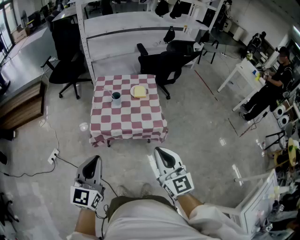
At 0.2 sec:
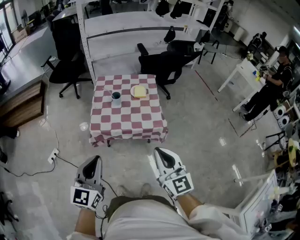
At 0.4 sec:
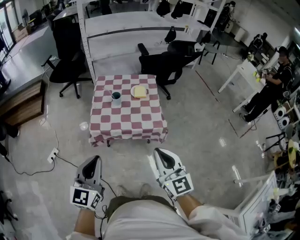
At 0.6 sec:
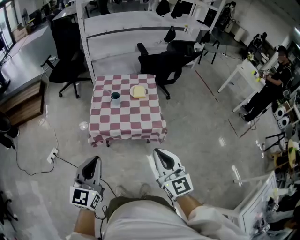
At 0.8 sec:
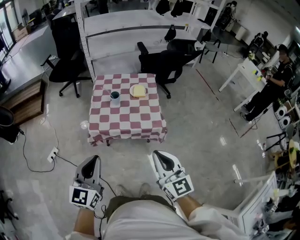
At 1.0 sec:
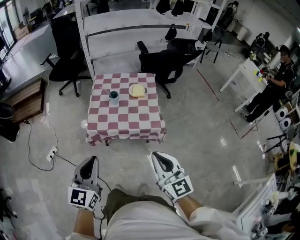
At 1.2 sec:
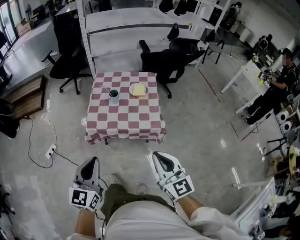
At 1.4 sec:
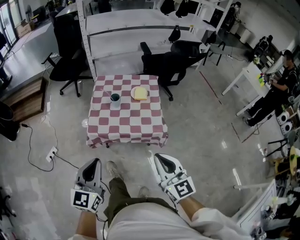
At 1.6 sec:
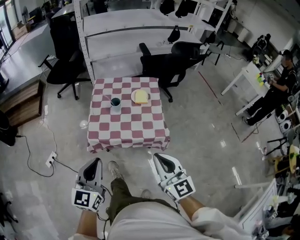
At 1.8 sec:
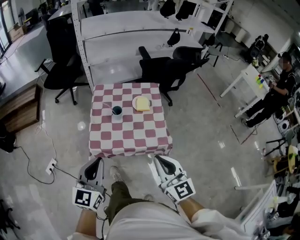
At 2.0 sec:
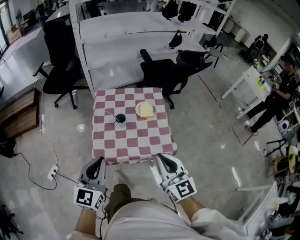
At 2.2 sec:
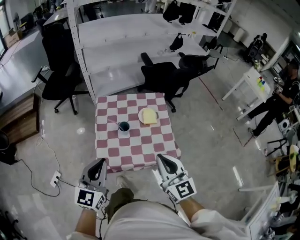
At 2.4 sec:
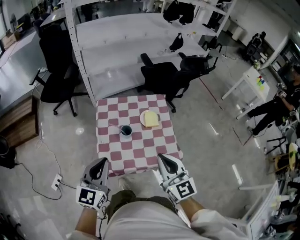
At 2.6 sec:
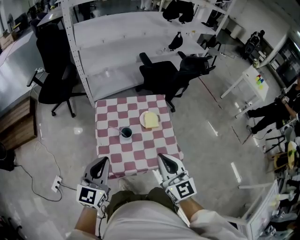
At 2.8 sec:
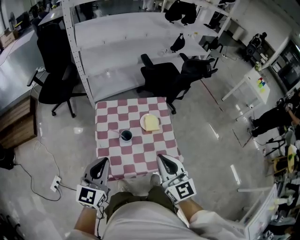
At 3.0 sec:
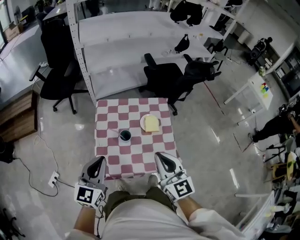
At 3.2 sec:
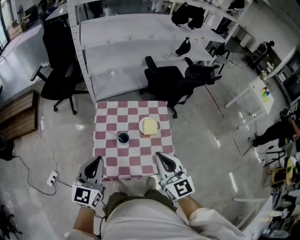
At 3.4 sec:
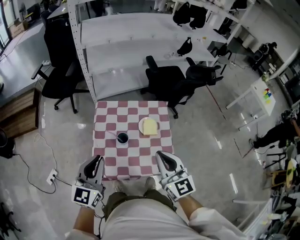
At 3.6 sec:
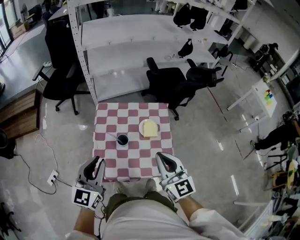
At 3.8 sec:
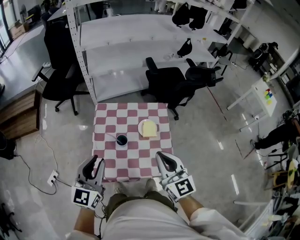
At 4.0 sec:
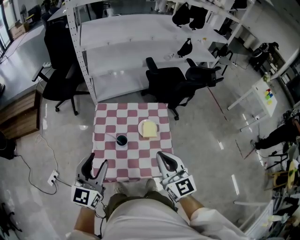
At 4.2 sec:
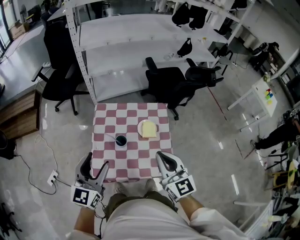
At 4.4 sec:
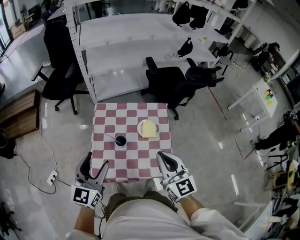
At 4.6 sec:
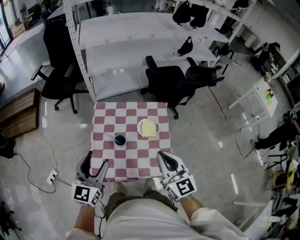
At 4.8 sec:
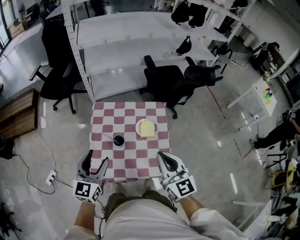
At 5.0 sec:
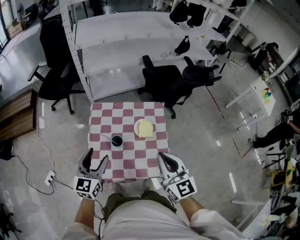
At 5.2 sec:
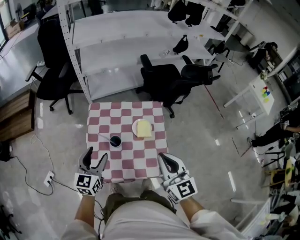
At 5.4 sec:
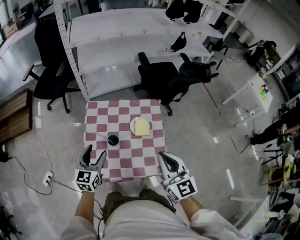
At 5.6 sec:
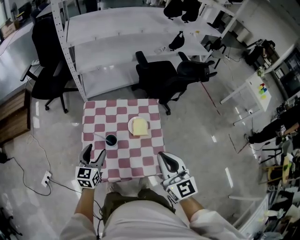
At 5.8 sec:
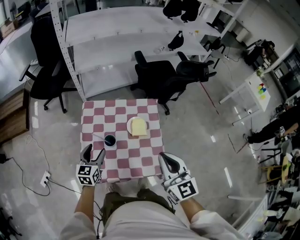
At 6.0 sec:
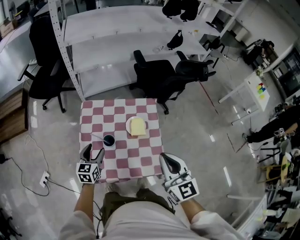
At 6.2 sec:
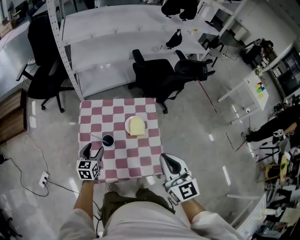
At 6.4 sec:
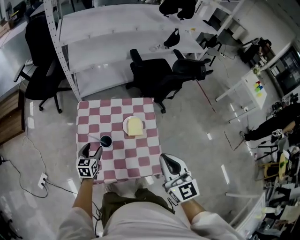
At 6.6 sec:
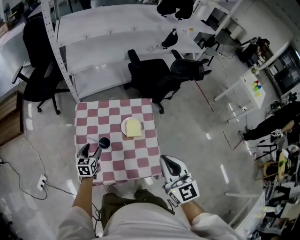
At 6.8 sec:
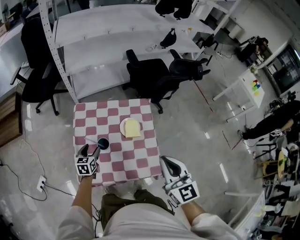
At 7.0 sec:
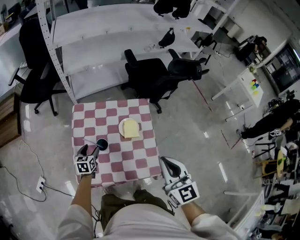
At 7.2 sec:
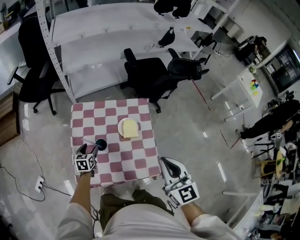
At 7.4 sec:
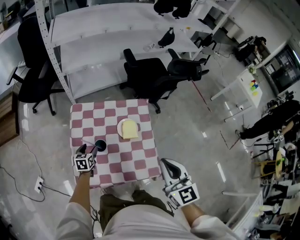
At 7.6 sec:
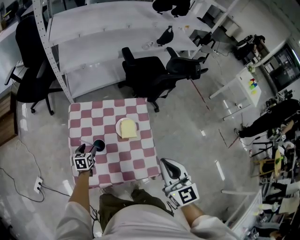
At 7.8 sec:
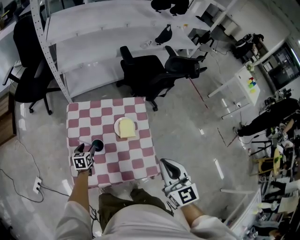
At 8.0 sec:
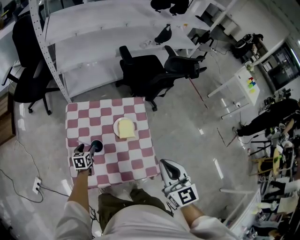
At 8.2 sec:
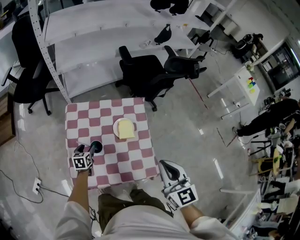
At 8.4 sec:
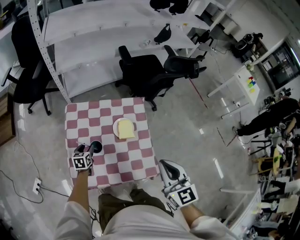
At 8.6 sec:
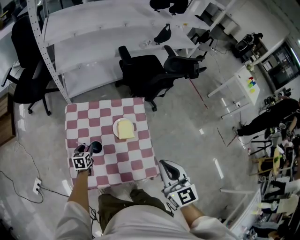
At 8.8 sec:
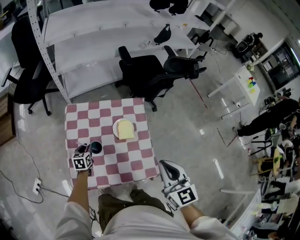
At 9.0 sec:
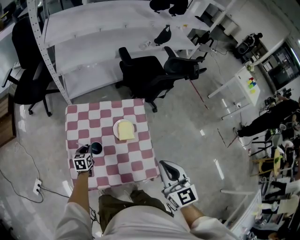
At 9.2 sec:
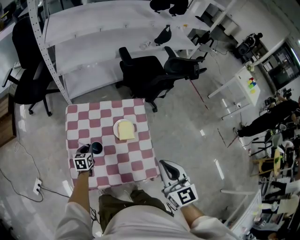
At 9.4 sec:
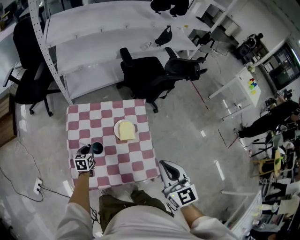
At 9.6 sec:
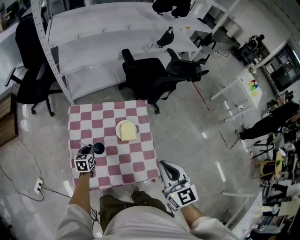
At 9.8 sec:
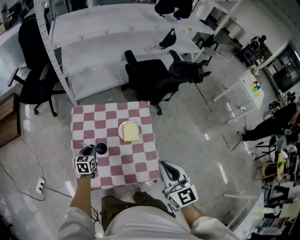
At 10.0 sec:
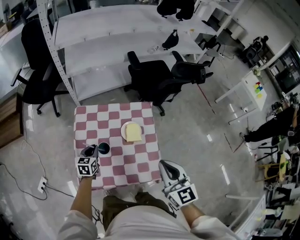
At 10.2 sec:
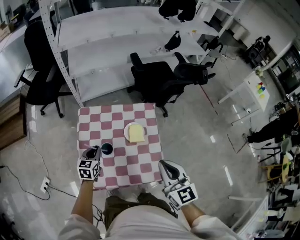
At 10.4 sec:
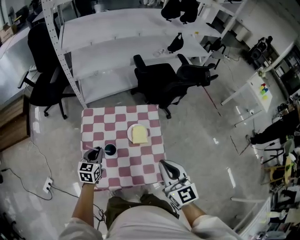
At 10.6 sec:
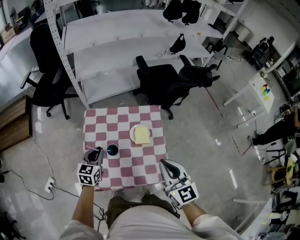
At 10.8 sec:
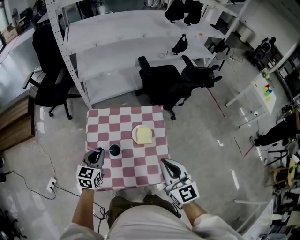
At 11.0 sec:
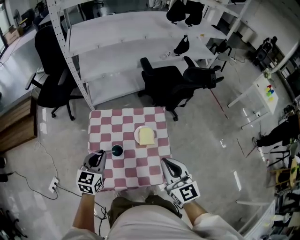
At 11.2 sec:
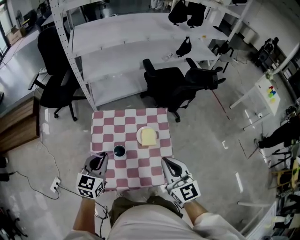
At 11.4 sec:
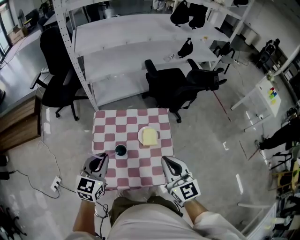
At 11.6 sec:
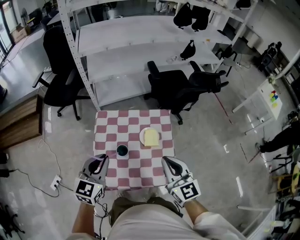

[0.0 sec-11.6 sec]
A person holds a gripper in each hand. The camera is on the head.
0.0 sec to 1.4 sec: The left gripper changes place by approximately 5 cm. Meanwhile the right gripper changes place by about 5 cm.
1.4 sec to 2.8 sec: The two grippers go roughly 30 cm forward.
2.8 sec to 4.4 sec: The left gripper opens its fingers. Meanwhile the right gripper travels to the right and forward by some 10 cm.
4.4 sec to 5.8 sec: The left gripper heads downward and forward, covering about 20 cm.
5.8 sec to 7.2 sec: The left gripper is displaced downward by about 15 cm.
7.2 sec to 8.8 sec: The left gripper closes up.
8.8 sec to 10.2 sec: The left gripper is displaced upward by about 10 cm.
10.2 sec to 11.6 sec: The left gripper shifts roughly 20 cm upward.

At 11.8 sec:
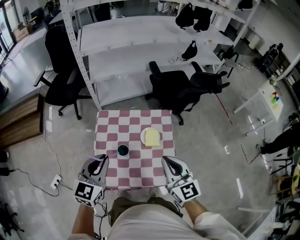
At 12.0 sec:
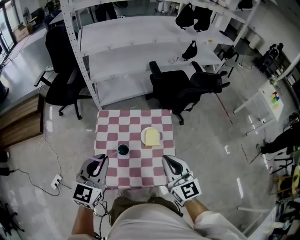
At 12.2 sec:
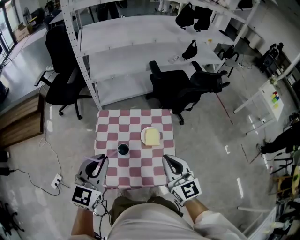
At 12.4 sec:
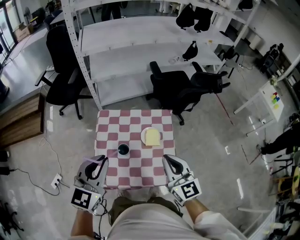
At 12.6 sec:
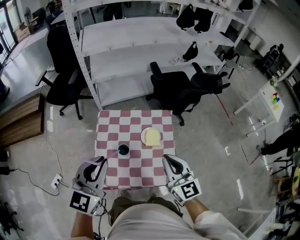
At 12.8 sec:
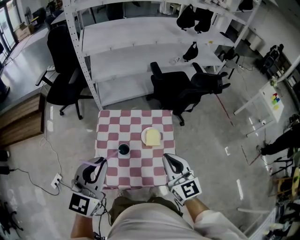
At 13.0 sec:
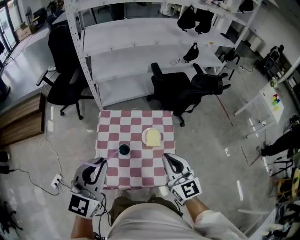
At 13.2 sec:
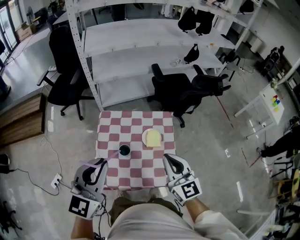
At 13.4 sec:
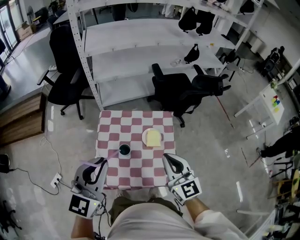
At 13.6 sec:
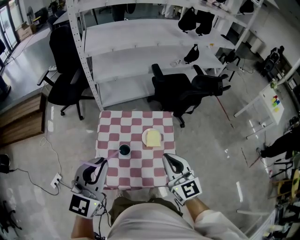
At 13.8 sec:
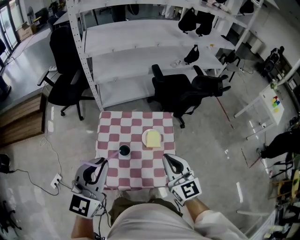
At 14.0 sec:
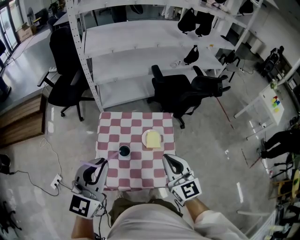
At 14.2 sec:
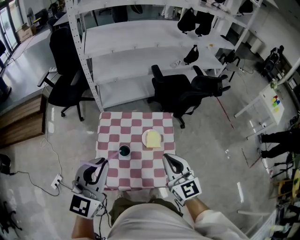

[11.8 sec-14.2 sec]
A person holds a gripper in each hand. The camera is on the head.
11.8 sec to 13.0 sec: The left gripper goes some 10 cm upward.
13.0 sec to 14.2 sec: Both grippers stay put.

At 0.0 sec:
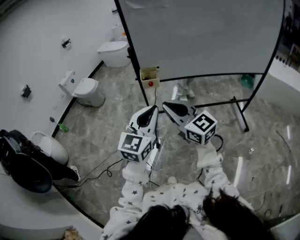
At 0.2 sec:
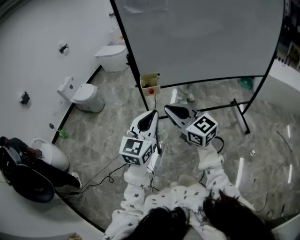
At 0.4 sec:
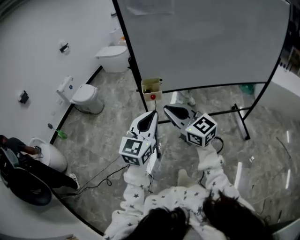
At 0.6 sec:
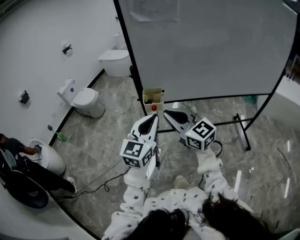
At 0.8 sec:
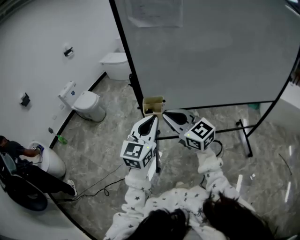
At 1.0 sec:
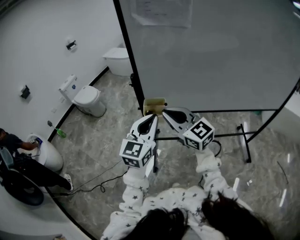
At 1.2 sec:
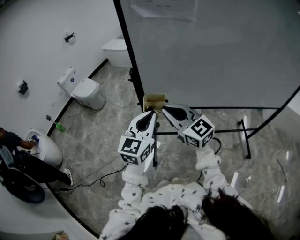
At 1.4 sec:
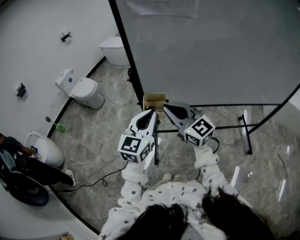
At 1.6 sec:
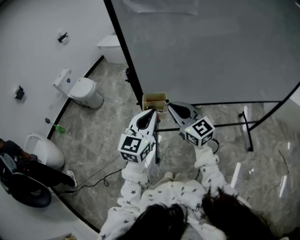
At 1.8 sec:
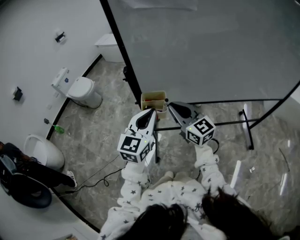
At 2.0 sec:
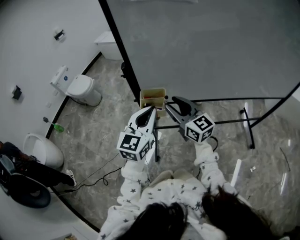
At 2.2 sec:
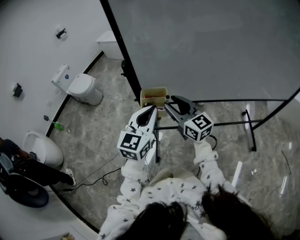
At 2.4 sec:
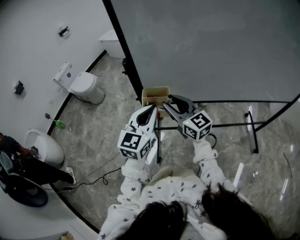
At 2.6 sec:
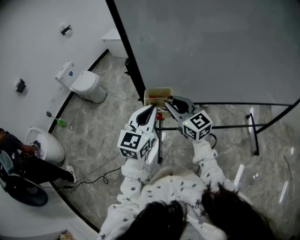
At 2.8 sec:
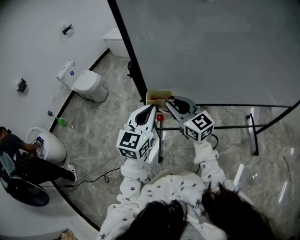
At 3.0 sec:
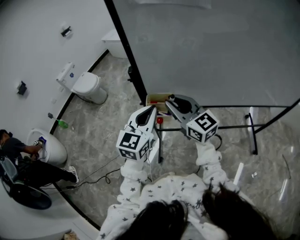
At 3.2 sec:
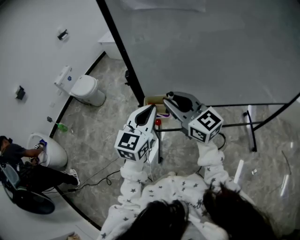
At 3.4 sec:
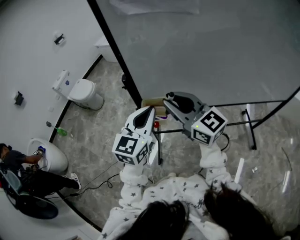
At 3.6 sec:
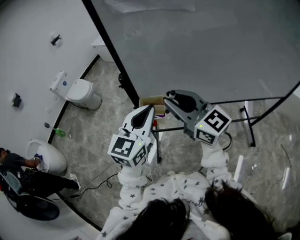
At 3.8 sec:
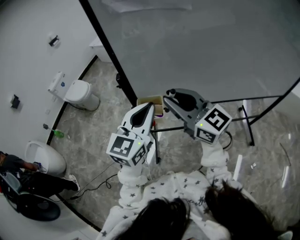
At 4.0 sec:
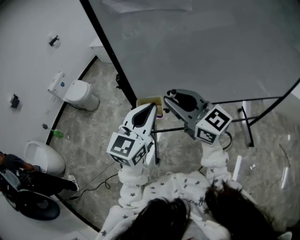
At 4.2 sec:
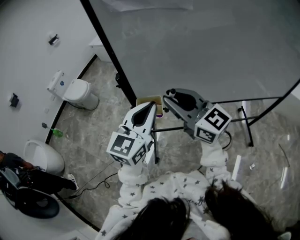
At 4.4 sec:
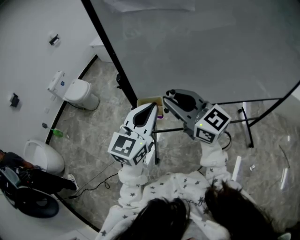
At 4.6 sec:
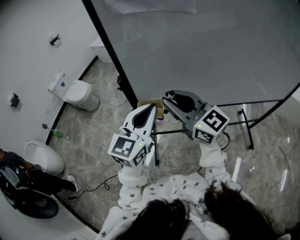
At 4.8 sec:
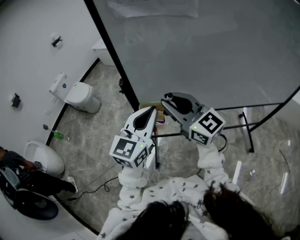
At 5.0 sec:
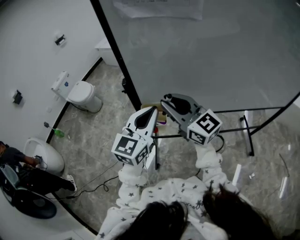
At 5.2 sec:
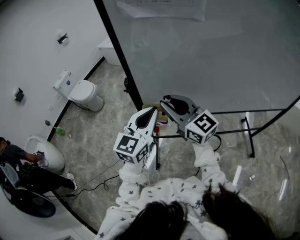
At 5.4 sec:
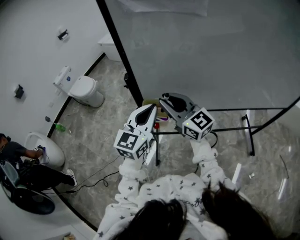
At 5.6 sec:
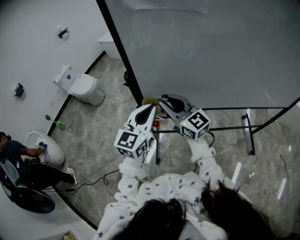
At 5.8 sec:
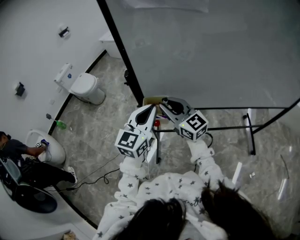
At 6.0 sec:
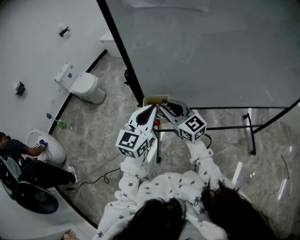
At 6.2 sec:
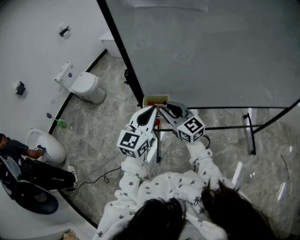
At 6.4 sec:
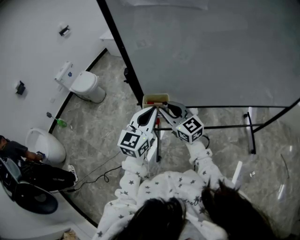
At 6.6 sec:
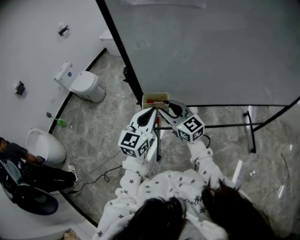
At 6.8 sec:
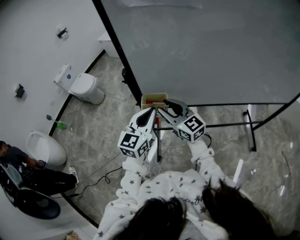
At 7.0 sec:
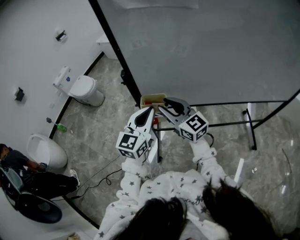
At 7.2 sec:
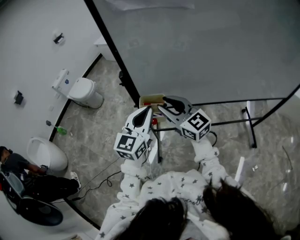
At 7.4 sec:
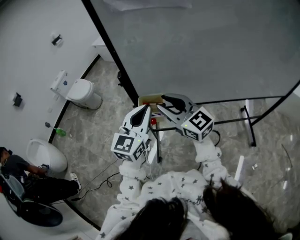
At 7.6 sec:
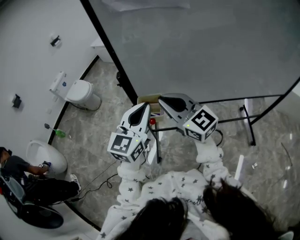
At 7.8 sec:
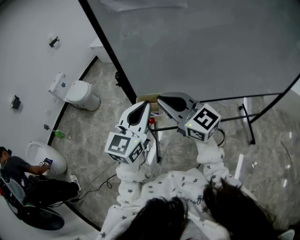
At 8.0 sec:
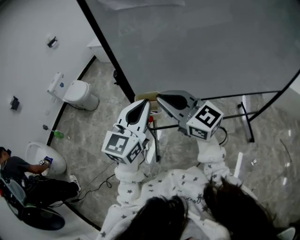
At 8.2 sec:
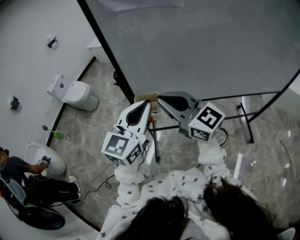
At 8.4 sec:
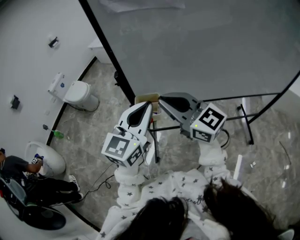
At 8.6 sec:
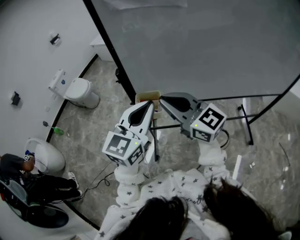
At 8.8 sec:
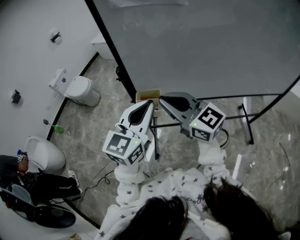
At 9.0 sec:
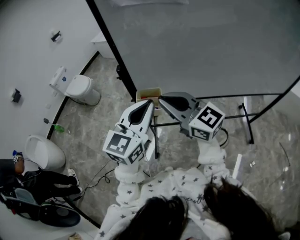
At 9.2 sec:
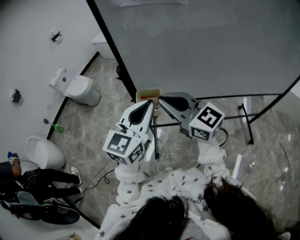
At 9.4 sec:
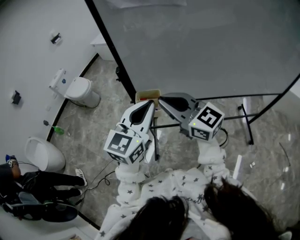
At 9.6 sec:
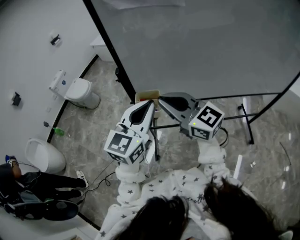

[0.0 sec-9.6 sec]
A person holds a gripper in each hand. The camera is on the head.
0.0 sec to 1.6 sec: Both grippers move forward, approximately 30 cm.
1.6 sec to 3.2 sec: The right gripper moves upward, some 5 cm.
3.2 sec to 4.8 sec: There are only small adjustments of the grippers.
4.8 sec to 6.4 sec: The left gripper moves downward, some 10 cm. The right gripper is displaced downward by roughly 15 cm.
6.4 sec to 8.0 sec: The left gripper travels upward by about 10 cm, while the right gripper heads upward and backward, covering some 15 cm.
8.0 sec to 9.6 sec: The grippers make only small movements.
